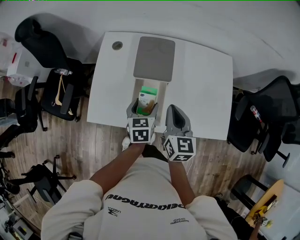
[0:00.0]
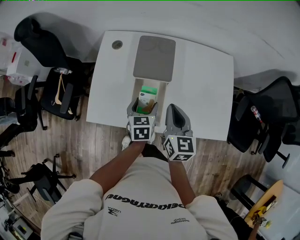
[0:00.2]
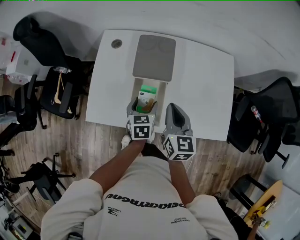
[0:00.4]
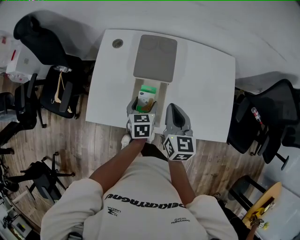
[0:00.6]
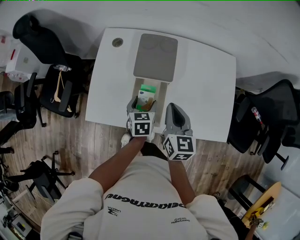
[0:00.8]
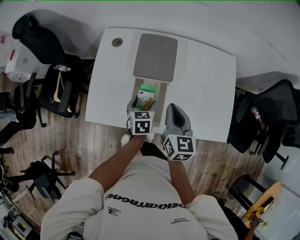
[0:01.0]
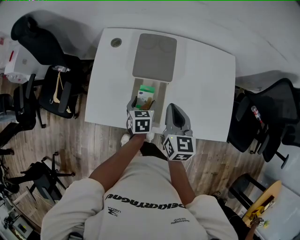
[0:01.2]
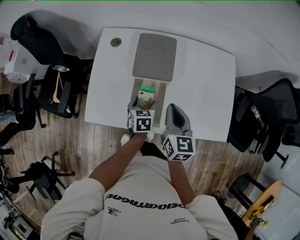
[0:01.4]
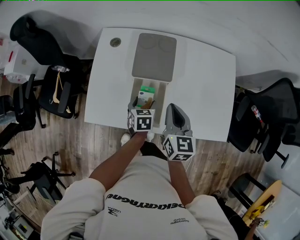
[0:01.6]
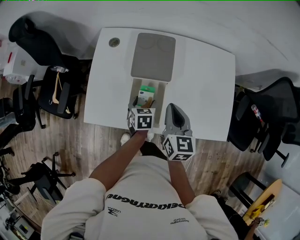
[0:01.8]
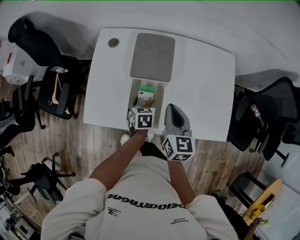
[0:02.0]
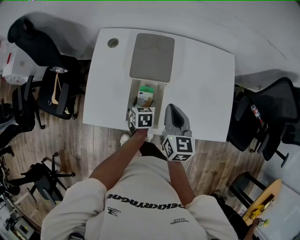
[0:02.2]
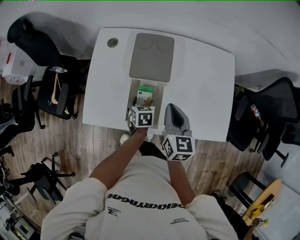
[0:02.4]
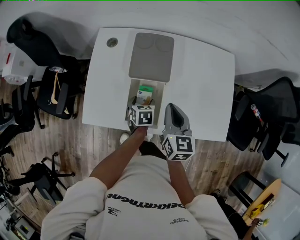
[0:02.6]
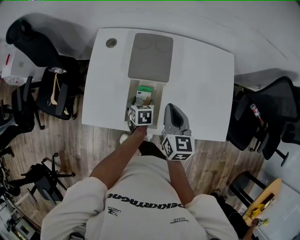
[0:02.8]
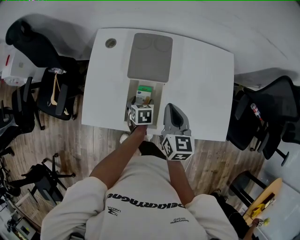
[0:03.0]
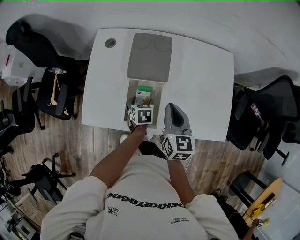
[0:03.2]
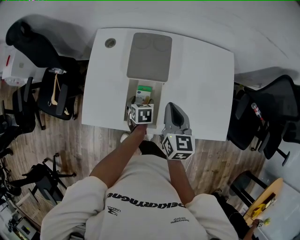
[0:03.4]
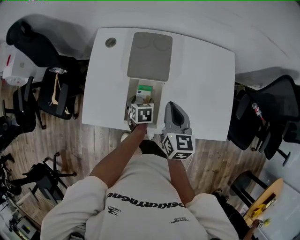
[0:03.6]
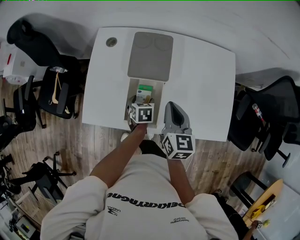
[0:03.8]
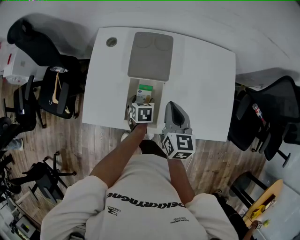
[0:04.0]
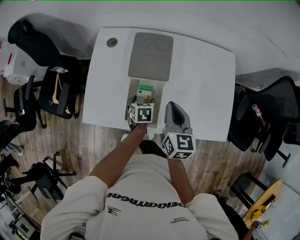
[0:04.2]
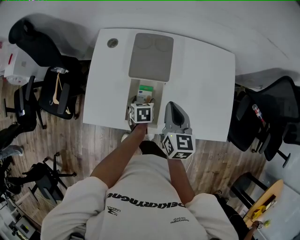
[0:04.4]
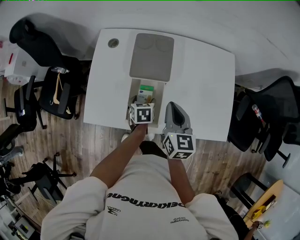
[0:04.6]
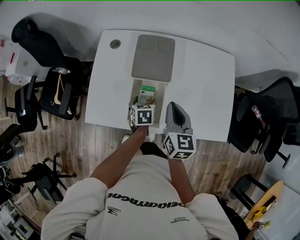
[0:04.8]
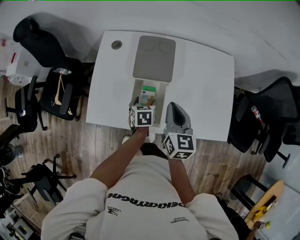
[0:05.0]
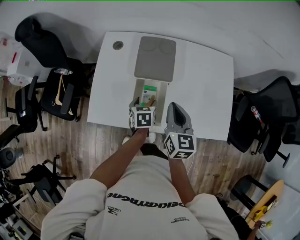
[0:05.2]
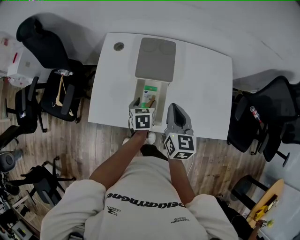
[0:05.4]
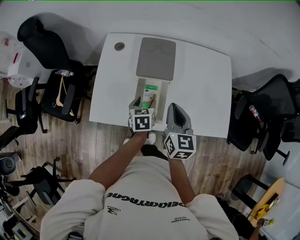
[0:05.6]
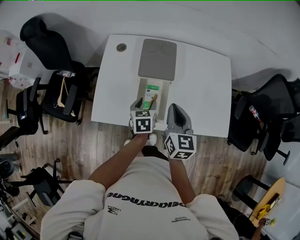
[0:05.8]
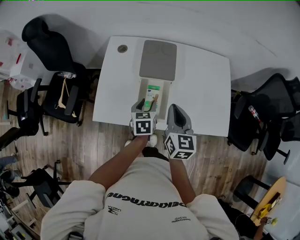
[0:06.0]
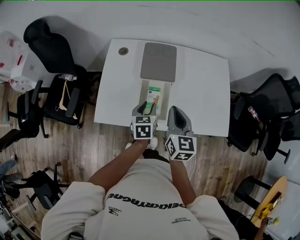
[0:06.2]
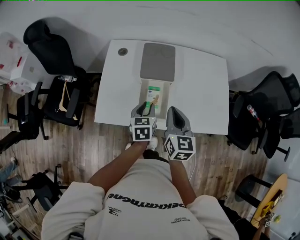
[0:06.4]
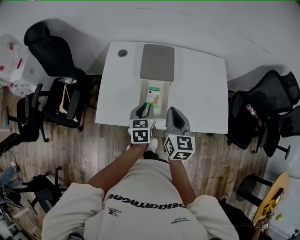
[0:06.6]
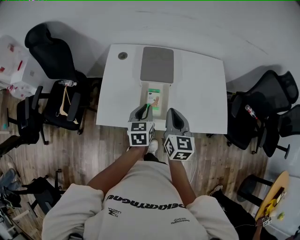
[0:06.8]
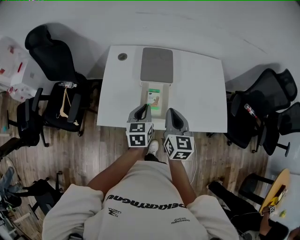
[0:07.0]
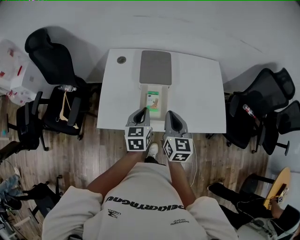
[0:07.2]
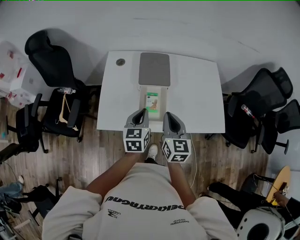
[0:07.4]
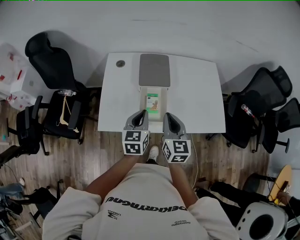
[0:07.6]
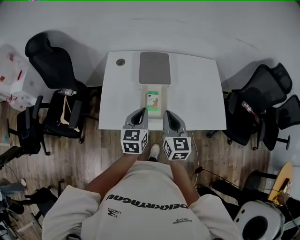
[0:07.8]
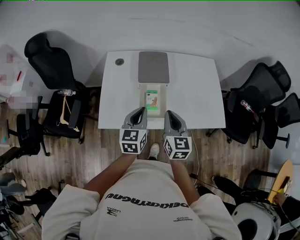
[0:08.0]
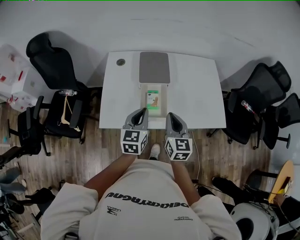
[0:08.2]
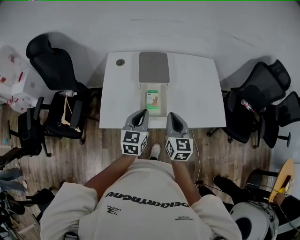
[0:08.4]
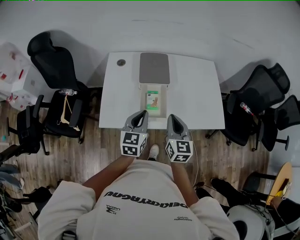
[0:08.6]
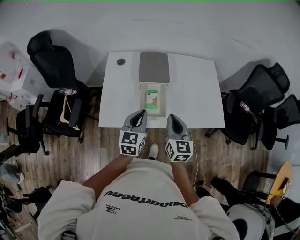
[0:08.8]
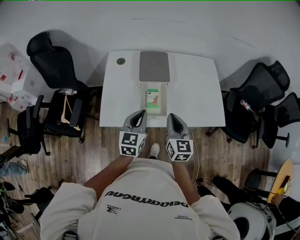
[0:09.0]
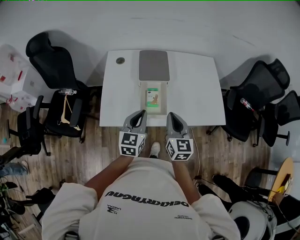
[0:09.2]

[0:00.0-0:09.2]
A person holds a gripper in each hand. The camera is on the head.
0.0 to 1.6 s: The left gripper travels downward by some 10 cm.
1.6 to 4.6 s: The grippers make only small movements.
4.6 to 6.2 s: The left gripper travels upward and backward by roughly 15 cm, and closes, while the right gripper is displaced backward and upward by approximately 10 cm.
6.2 to 7.6 s: The right gripper changes place by roughly 5 cm. Meanwhile the left gripper shifts about 10 cm upward, and closes up.
7.6 to 9.2 s: The grippers move only a little.

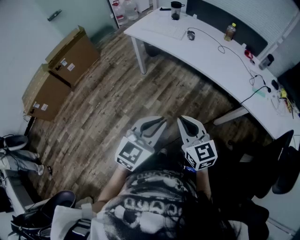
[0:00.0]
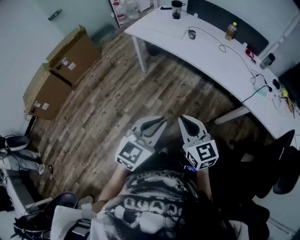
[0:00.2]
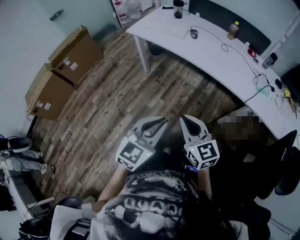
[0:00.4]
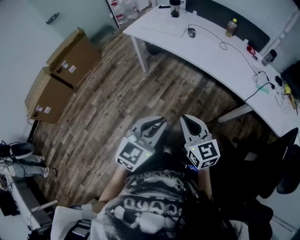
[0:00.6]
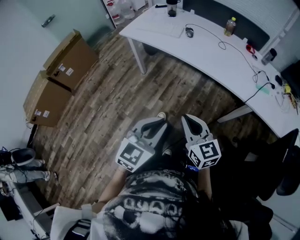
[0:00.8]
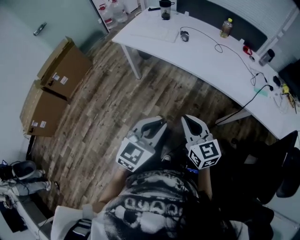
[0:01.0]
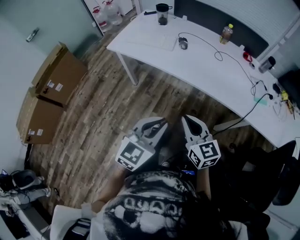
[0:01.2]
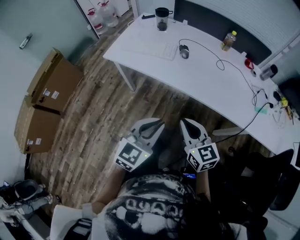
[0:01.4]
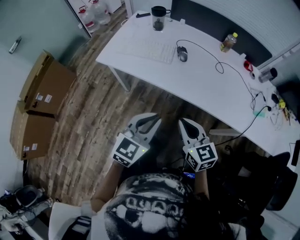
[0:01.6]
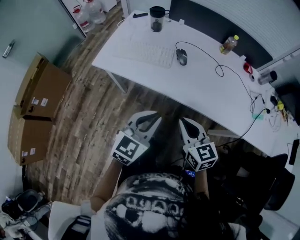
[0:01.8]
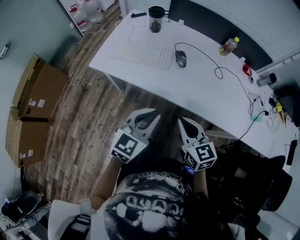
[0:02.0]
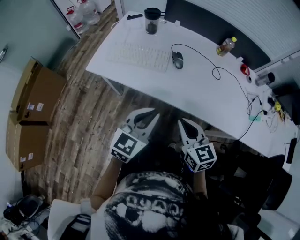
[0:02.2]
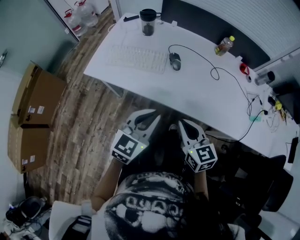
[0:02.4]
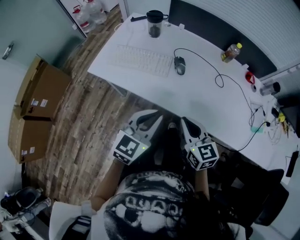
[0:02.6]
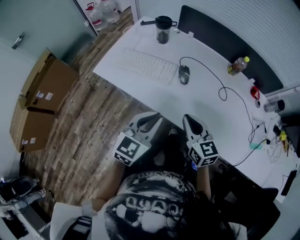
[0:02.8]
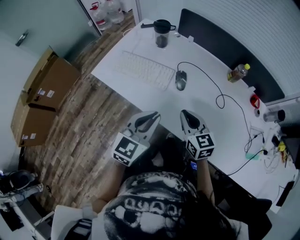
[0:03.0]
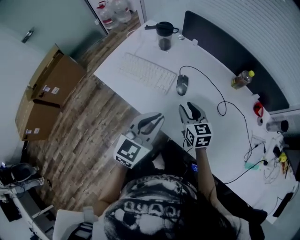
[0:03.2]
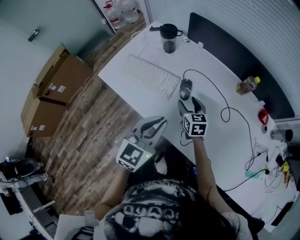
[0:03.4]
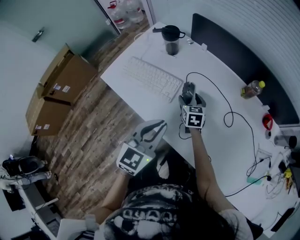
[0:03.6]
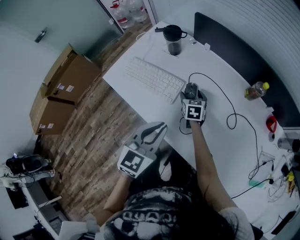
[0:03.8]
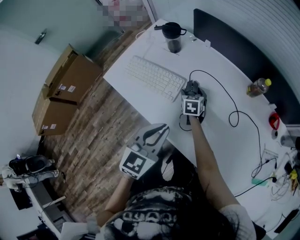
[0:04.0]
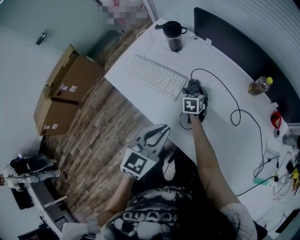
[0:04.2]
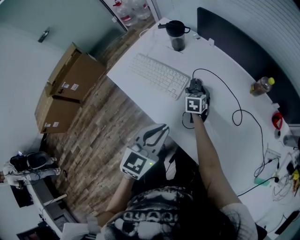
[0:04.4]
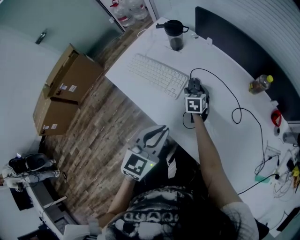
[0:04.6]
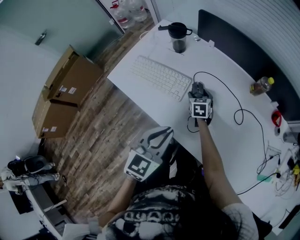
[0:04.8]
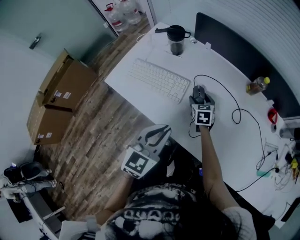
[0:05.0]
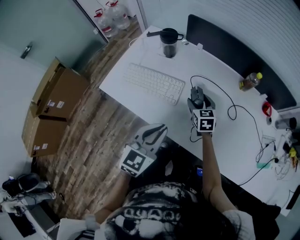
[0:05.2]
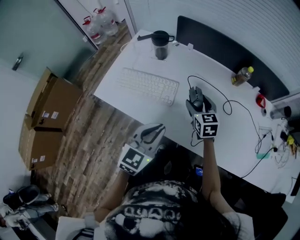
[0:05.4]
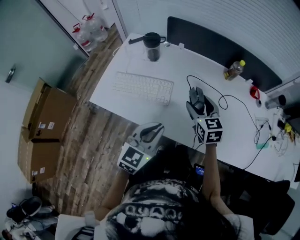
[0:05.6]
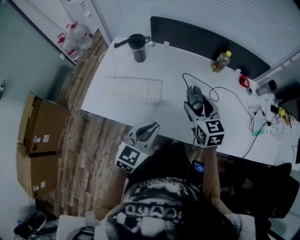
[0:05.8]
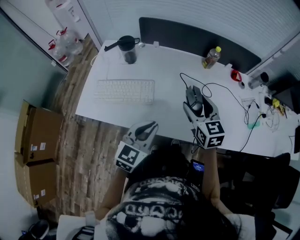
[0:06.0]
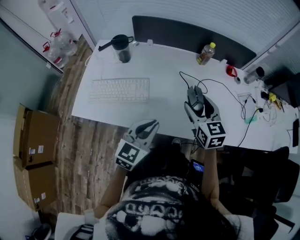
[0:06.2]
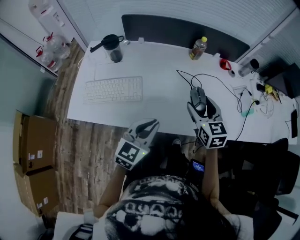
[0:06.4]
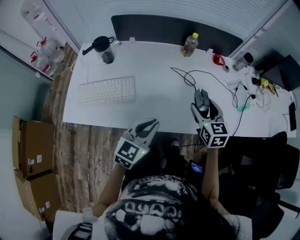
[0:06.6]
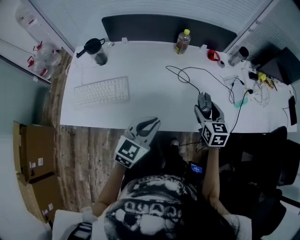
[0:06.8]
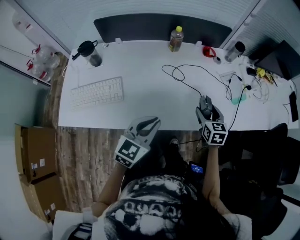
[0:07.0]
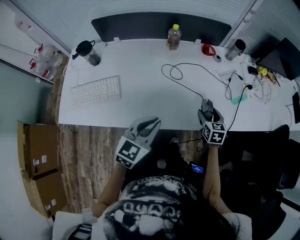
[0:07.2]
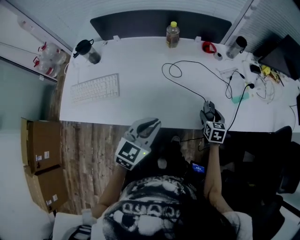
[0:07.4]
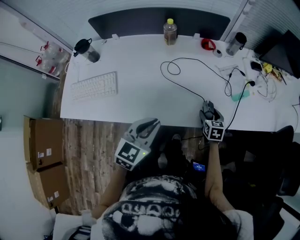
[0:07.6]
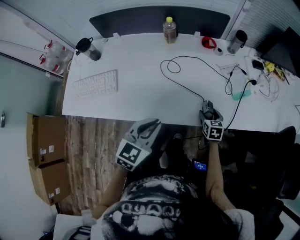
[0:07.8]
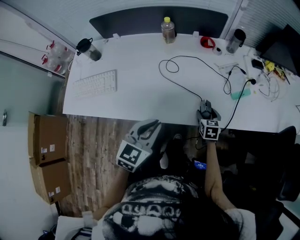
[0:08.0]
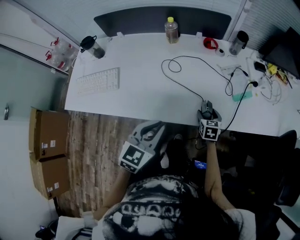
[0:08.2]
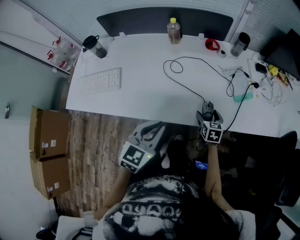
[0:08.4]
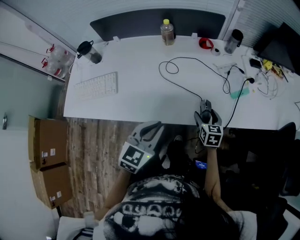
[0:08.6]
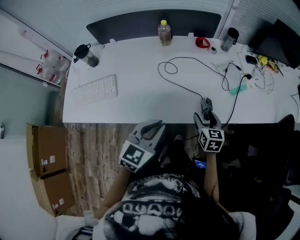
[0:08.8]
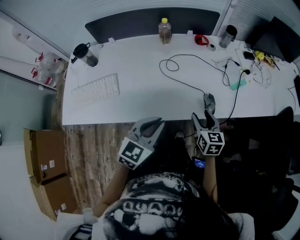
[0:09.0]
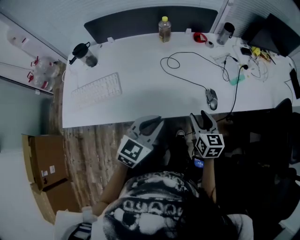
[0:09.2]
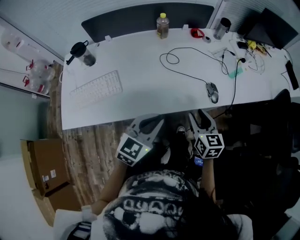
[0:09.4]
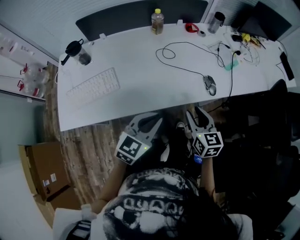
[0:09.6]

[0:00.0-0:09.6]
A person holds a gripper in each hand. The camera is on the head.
0.0 to 1.6 s: Both grippers travel together forward, about 35 cm.
1.6 to 3.2 s: Both grippers move forward, some 25 cm. The right gripper opens its fingers.
3.2 to 4.8 s: The right gripper moves downward and forward, about 20 cm, changes its angle by approximately 20 degrees, and opens up.
4.8 to 6.4 s: The left gripper rotates about 30 degrees, while the right gripper shifts by about 35 cm, and swivels some 30 degrees.
6.4 to 8.0 s: The right gripper is displaced to the right and downward by some 35 cm, and turns by roughly 30 degrees. The left gripper heads to the right, covering roughly 20 cm.
8.0 to 9.6 s: The left gripper heads to the left and backward, covering approximately 15 cm, and rotates roughly 20 degrees. The right gripper goes some 30 cm backward, upward and to the left, turns by roughly 20 degrees, and closes up.

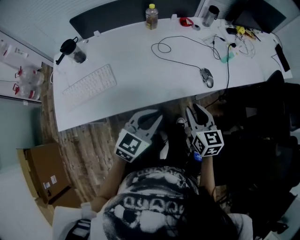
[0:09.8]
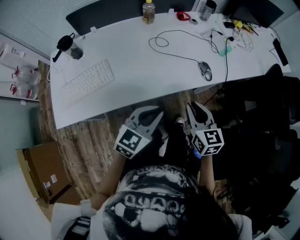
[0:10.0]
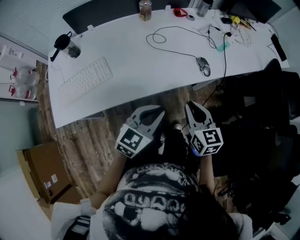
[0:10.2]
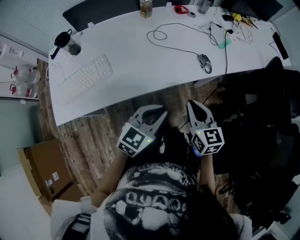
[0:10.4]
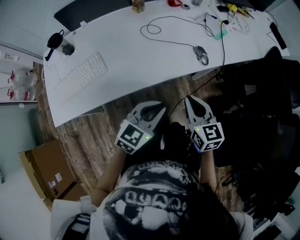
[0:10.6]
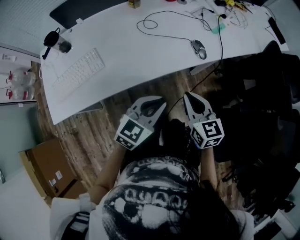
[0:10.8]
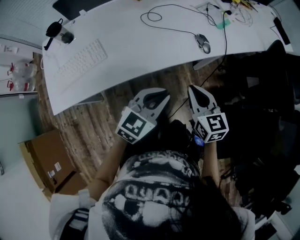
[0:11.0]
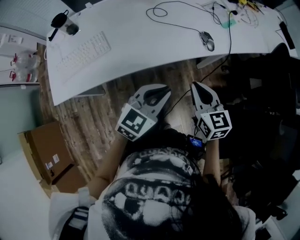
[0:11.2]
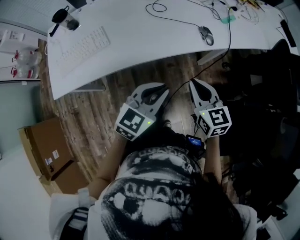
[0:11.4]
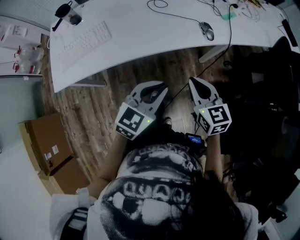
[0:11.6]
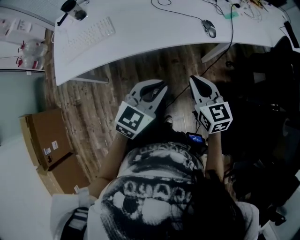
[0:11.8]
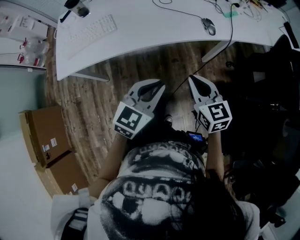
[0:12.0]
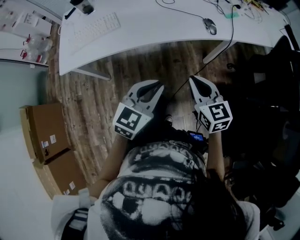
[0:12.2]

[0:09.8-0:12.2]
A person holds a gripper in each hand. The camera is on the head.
9.8 to 11.0 s: The left gripper travels to the right by some 5 cm. Meanwhile the right gripper shifts approximately 5 cm backward.
11.0 to 12.2 s: The grippers both shift backward by roughly 15 cm.

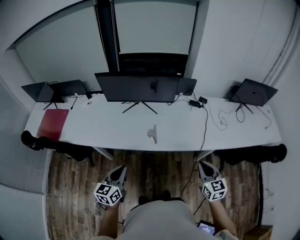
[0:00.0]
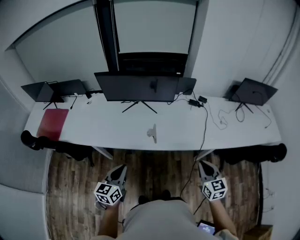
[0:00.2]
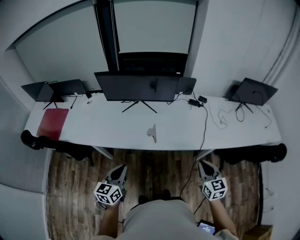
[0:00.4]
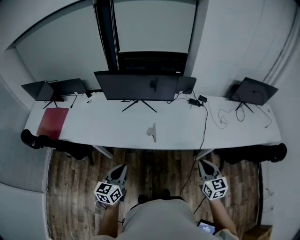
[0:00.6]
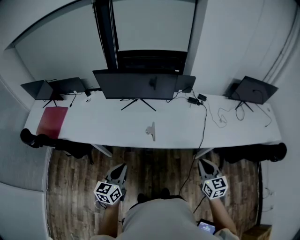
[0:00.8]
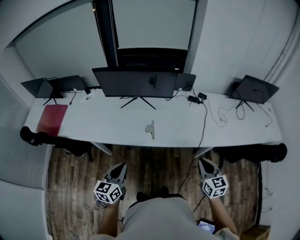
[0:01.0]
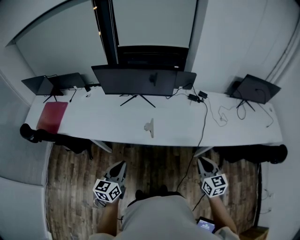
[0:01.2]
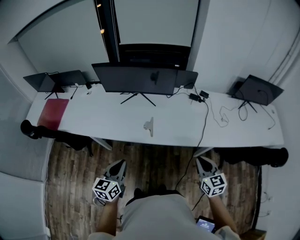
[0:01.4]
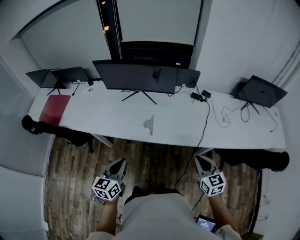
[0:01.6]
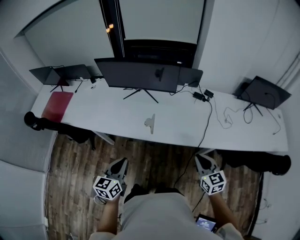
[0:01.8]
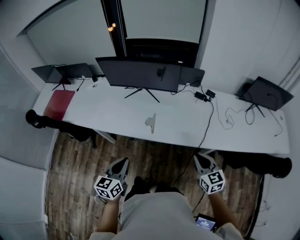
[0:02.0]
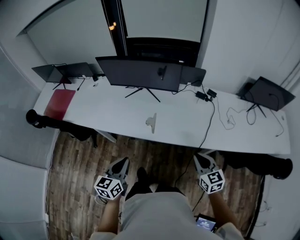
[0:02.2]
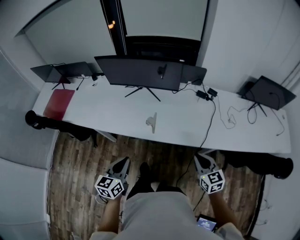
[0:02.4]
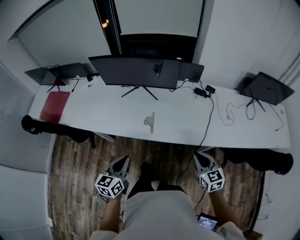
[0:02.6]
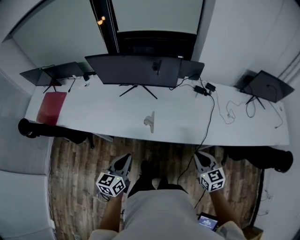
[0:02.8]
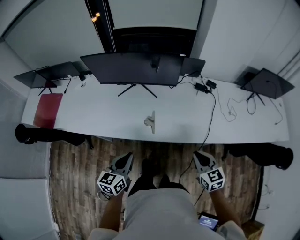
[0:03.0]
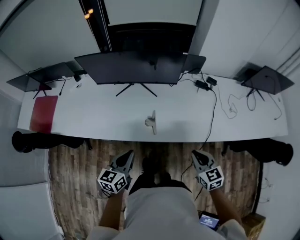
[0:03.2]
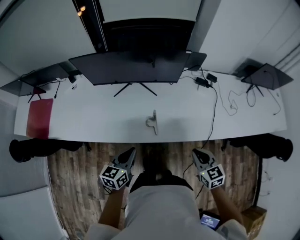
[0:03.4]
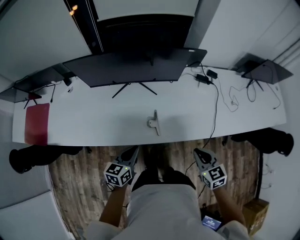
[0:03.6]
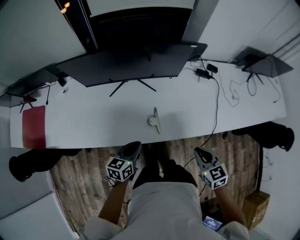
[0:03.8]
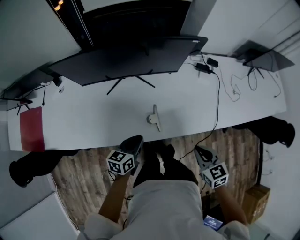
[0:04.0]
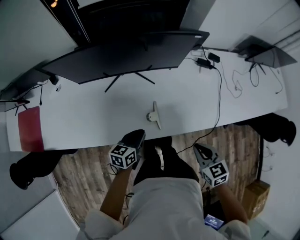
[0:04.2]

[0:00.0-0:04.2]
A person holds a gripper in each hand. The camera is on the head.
0.0 to 1.4 s: The left gripper is displaced to the right by some 5 cm.
1.4 to 2.8 s: Both grippers travel together forward, some 5 cm.
2.8 to 4.2 s: The right gripper heads to the left, forward and downward, covering approximately 15 cm. The left gripper shifts roughly 25 cm forward and downward, and swivels about 30 degrees.
